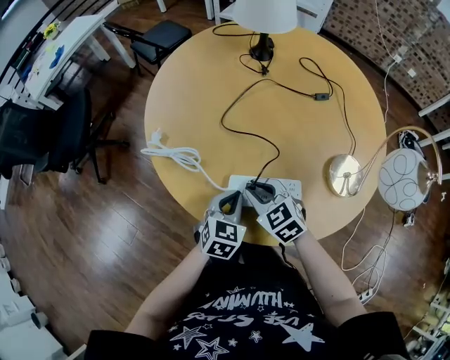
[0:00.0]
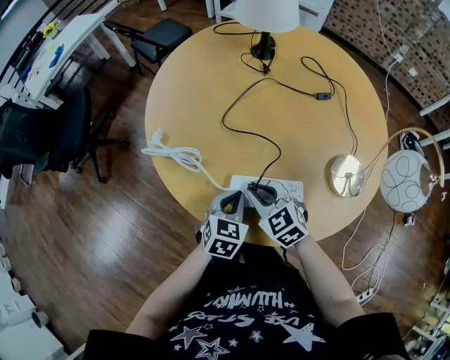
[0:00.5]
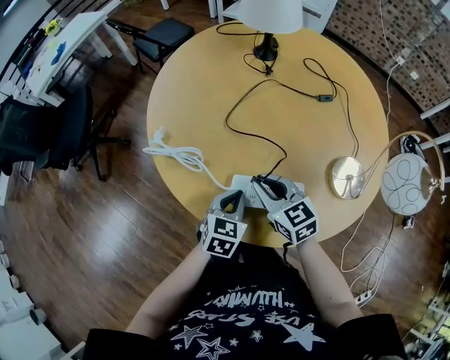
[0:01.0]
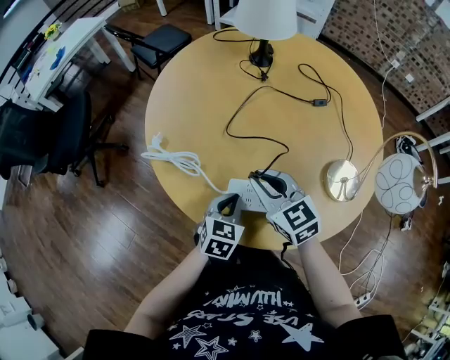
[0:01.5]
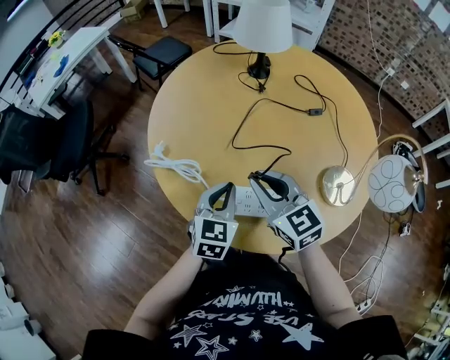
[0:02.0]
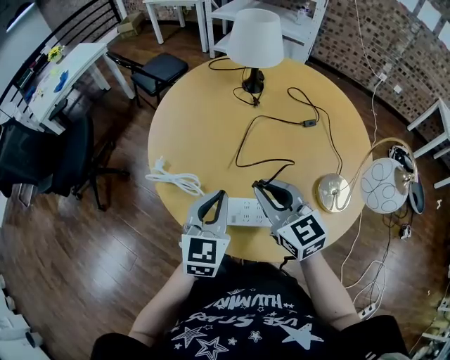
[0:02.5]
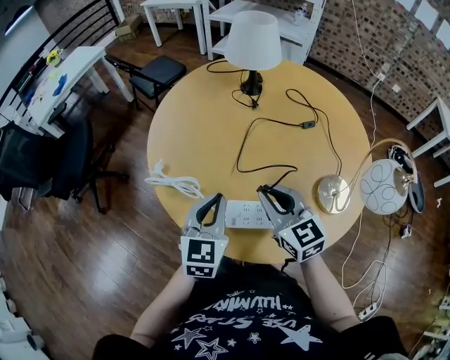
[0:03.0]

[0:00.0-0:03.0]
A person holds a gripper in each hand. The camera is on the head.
0:00.0 to 0:01.5: The right gripper goes some 5 cm upward.
0:01.5 to 0:03.0: The right gripper moves upward, about 5 cm. The left gripper moves upward, roughly 15 cm, and changes its angle by some 20 degrees.

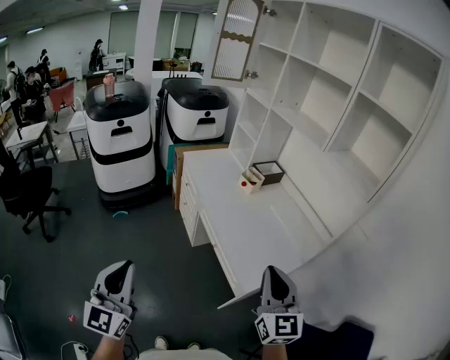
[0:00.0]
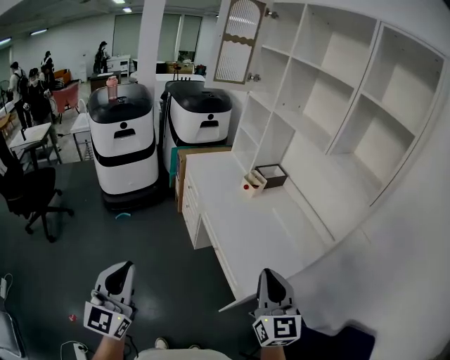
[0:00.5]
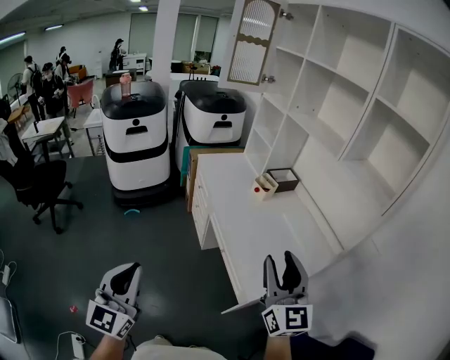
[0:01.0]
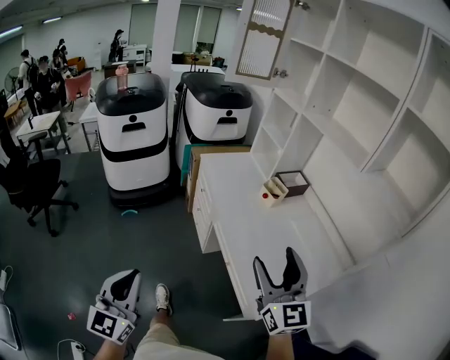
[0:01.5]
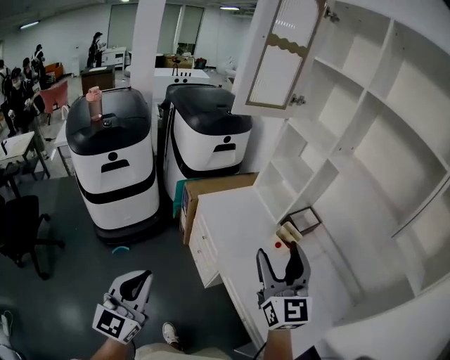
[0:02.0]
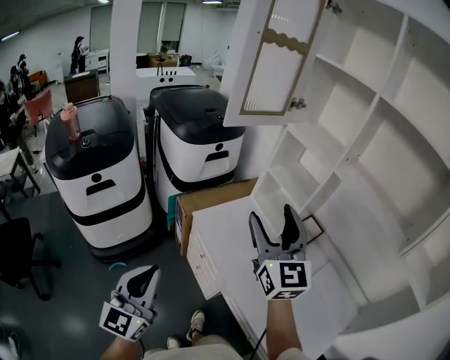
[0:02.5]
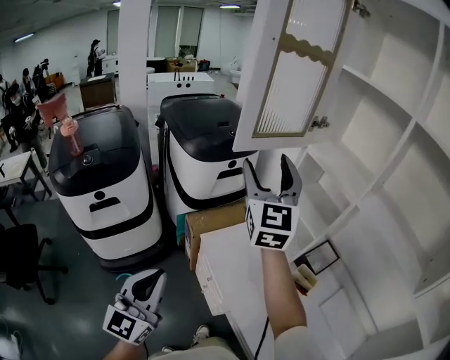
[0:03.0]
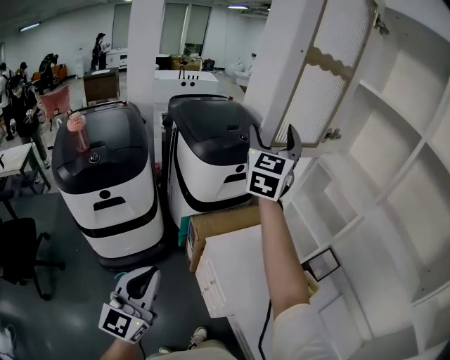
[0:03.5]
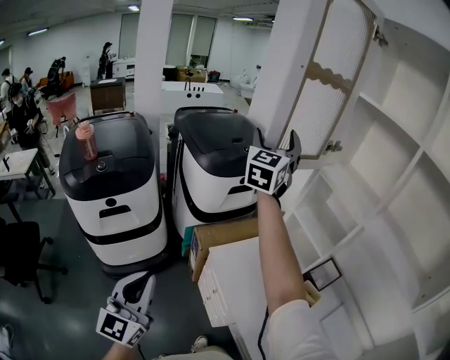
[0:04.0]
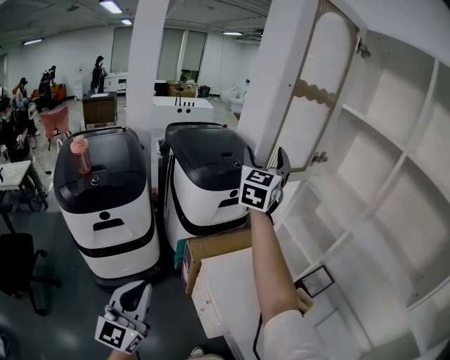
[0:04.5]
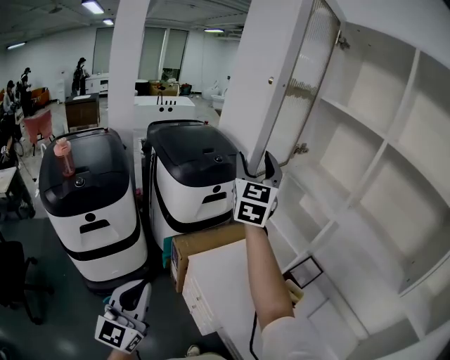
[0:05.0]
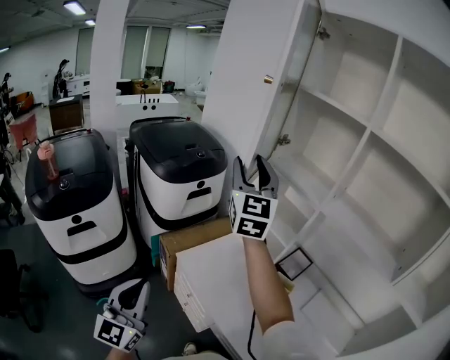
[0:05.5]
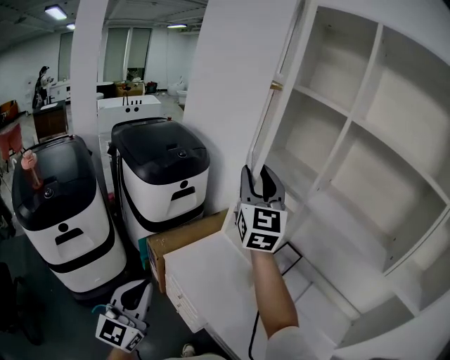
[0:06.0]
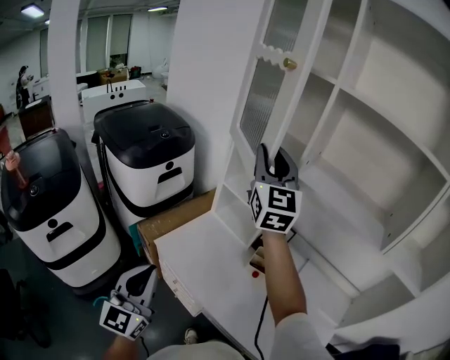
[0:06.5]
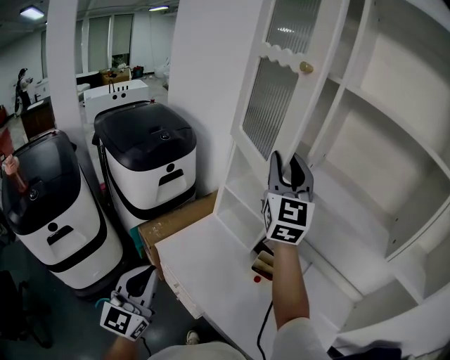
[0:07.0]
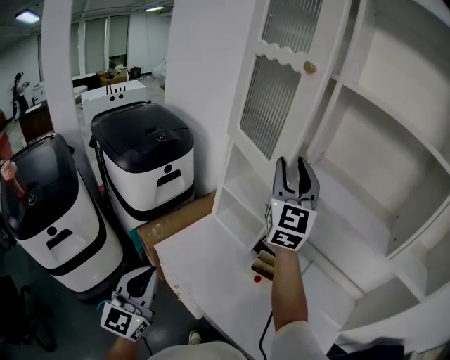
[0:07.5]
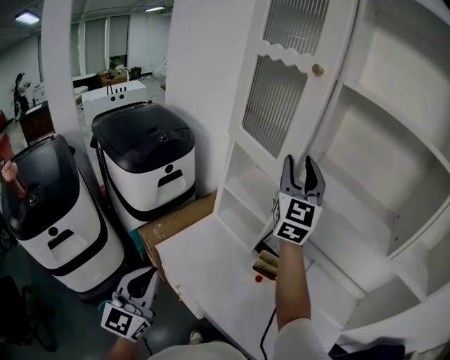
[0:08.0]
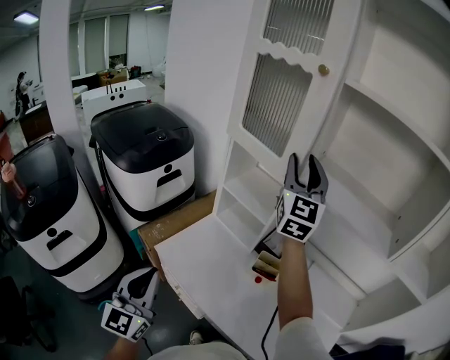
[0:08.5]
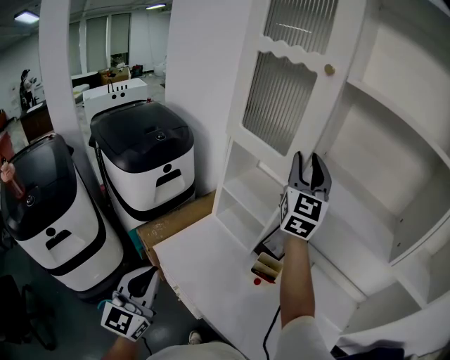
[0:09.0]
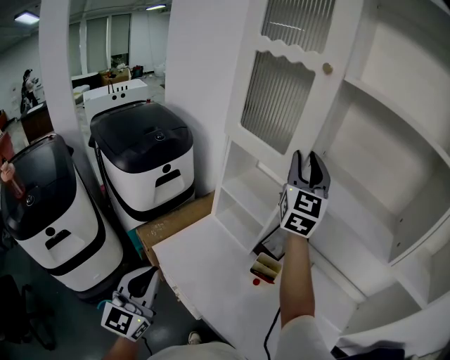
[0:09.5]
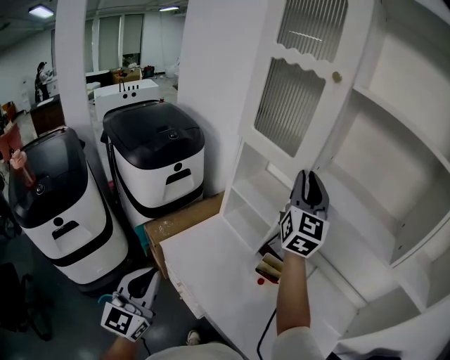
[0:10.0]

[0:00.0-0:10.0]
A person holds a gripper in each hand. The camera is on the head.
0:00.0 to 0:02.0: The two grippers travel together, forward, some 50 cm. The right gripper opens.
0:02.0 to 0:04.0: The left gripper goes about 25 cm forward. The right gripper is displaced forward by some 50 cm, and changes its angle by about 20 degrees.
0:04.0 to 0:06.0: The left gripper is displaced to the right by roughly 10 cm; the right gripper shifts about 20 cm to the right and backward, and closes.
0:06.0 to 0:08.0: The left gripper heads forward and to the right, covering some 10 cm. The right gripper heads to the right, covering roughly 20 cm, and changes its angle by approximately 20 degrees.
0:08.0 to 0:10.0: The grippers stay close to where they were, moving slightly.

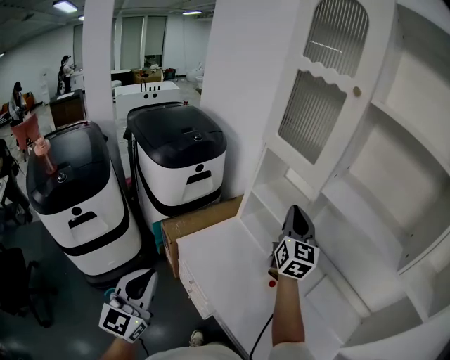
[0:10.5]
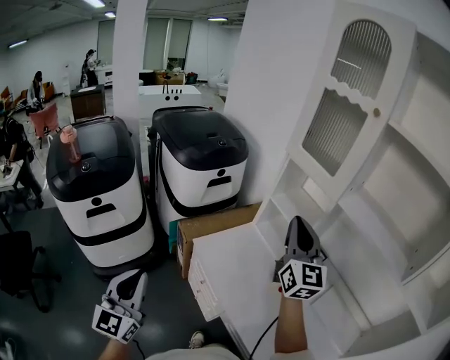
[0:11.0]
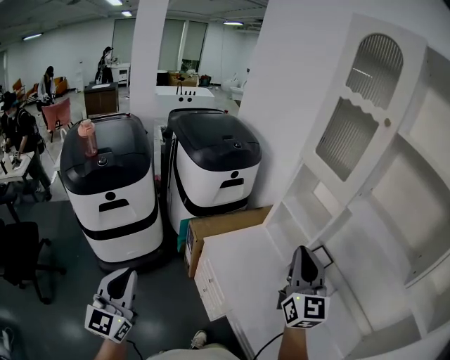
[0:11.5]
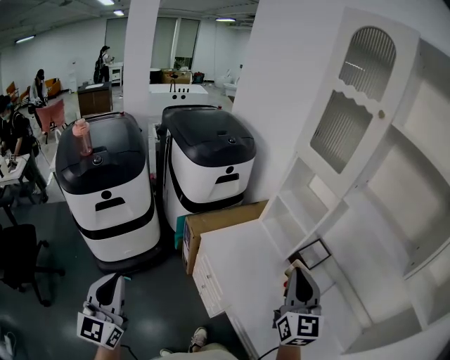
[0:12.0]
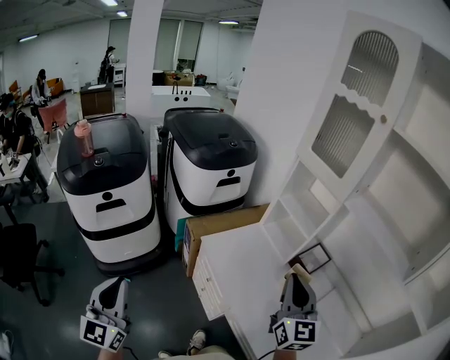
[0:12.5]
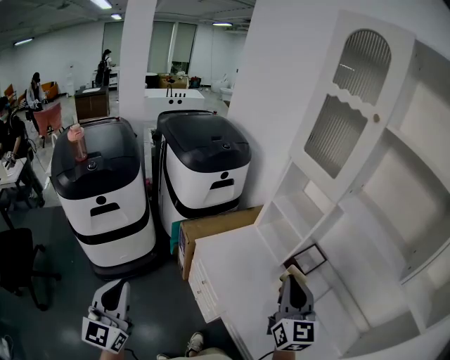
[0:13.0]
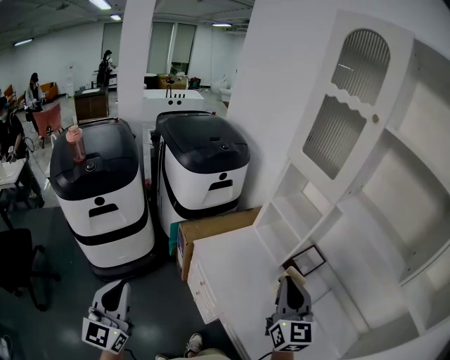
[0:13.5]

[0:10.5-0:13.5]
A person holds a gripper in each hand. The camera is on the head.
0:10.5 to 0:12.0: The right gripper travels backward and to the left by about 20 cm. The left gripper is displaced to the left and backward by about 20 cm.
0:12.0 to 0:13.5: There are only small adjustments of the grippers.

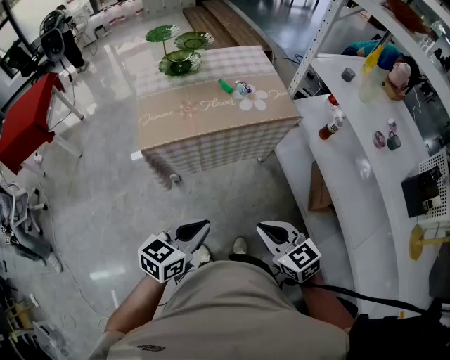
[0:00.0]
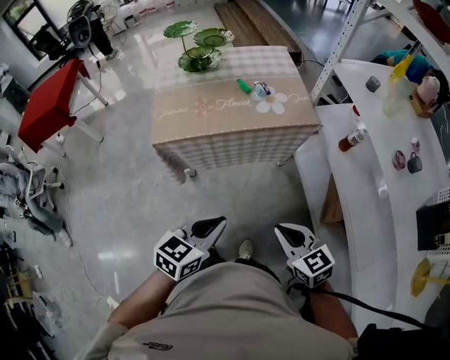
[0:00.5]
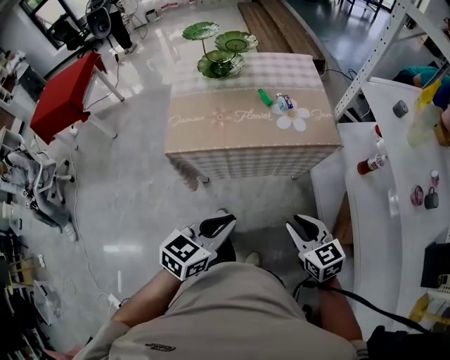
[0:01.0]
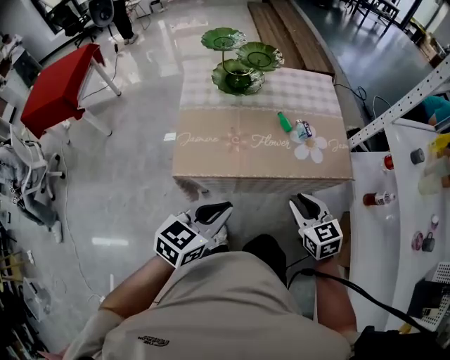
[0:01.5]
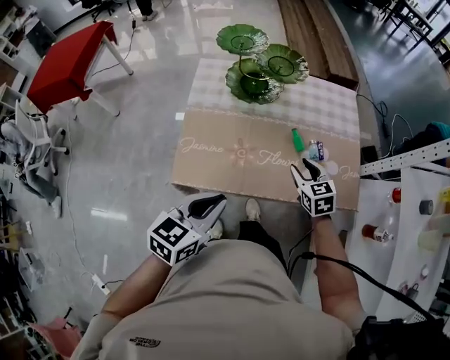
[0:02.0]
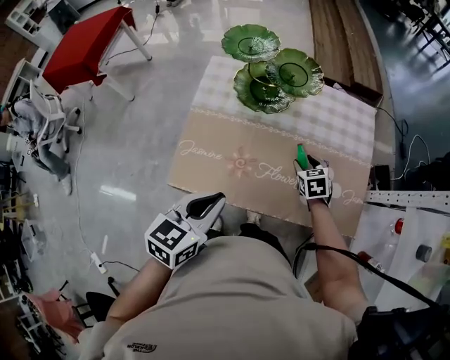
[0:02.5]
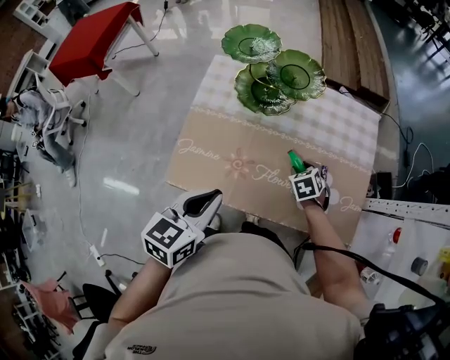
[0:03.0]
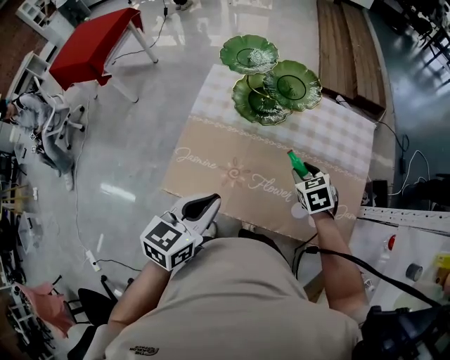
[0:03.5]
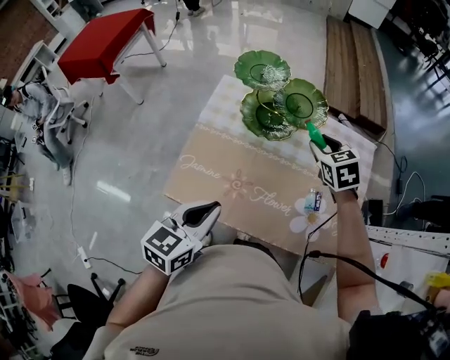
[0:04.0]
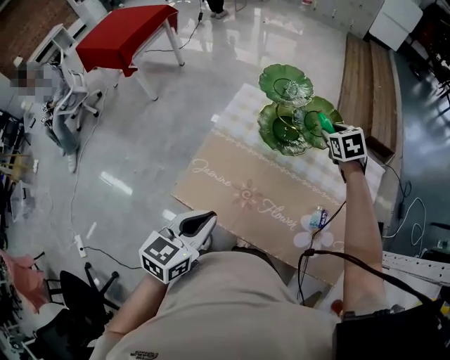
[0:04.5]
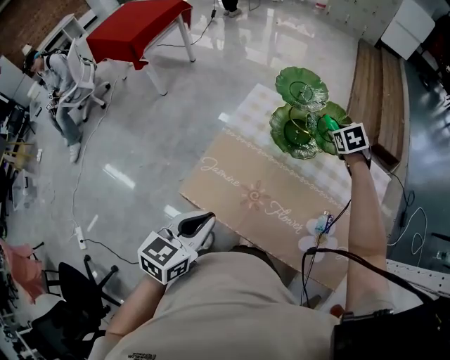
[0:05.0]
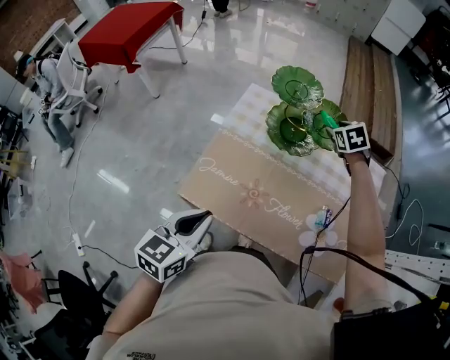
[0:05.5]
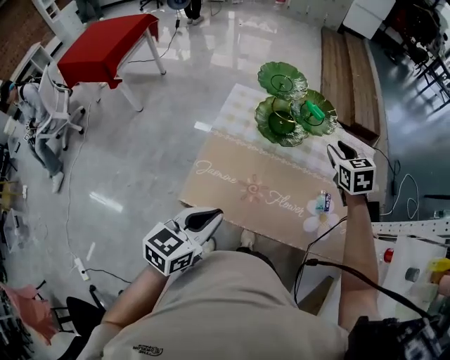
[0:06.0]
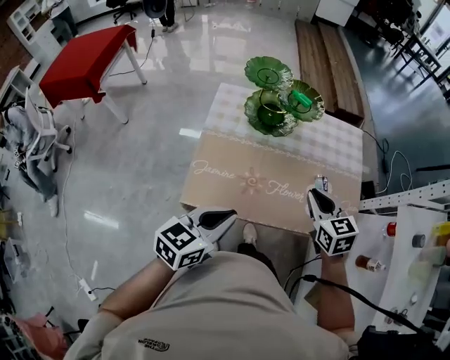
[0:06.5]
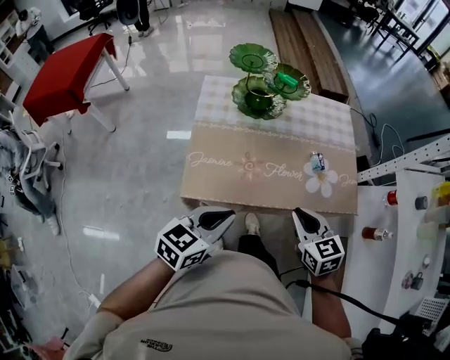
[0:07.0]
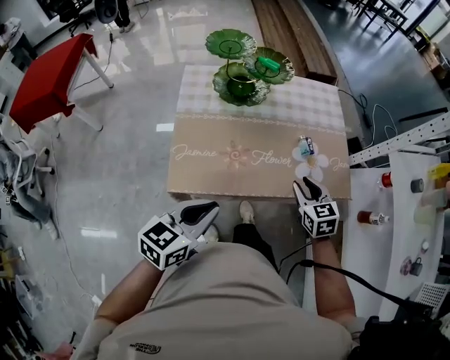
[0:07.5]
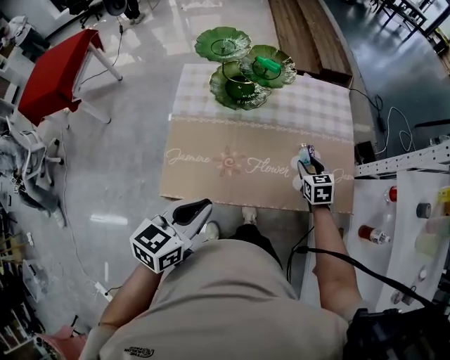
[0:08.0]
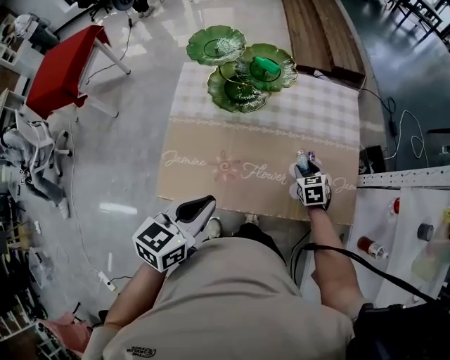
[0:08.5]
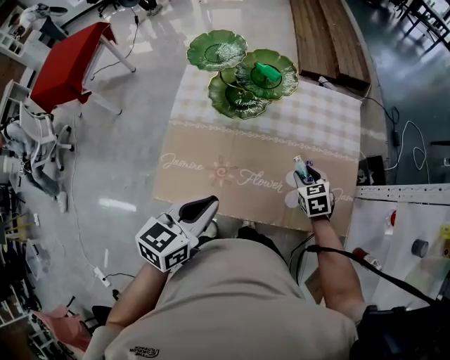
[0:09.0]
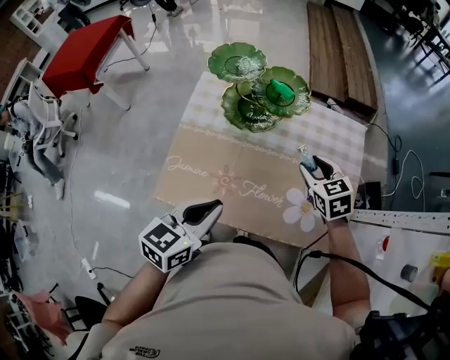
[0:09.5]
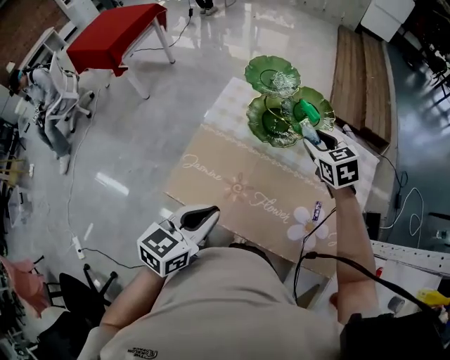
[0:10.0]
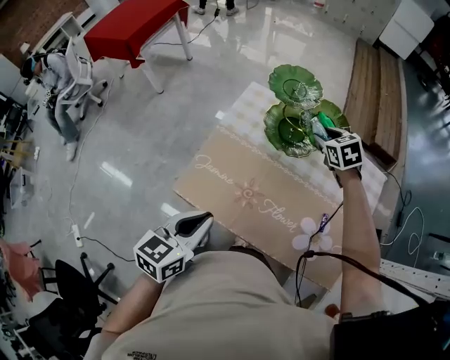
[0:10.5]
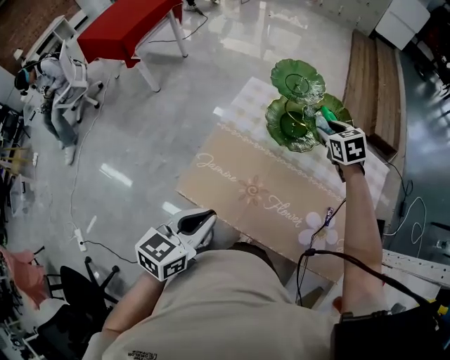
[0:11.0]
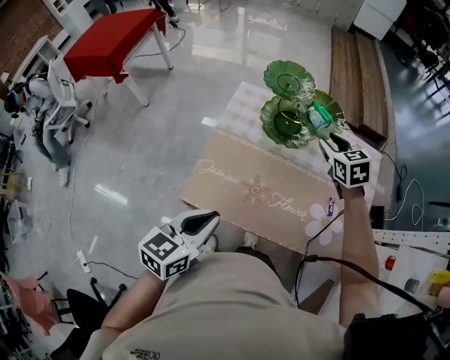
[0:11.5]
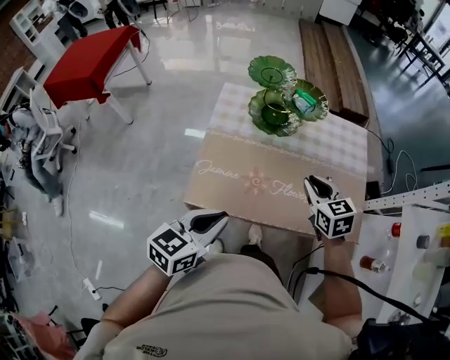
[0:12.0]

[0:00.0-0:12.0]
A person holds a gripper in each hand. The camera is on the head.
0:00.0 to 0:02.0: The right gripper moves forward, approximately 60 cm, and opens up. The left gripper is displaced forward by some 35 cm.
0:02.0 to 0:04.0: The right gripper is displaced forward and upward by some 25 cm; the left gripper shifts some 10 cm forward.
0:04.0 to 0:06.0: The left gripper goes approximately 5 cm to the left, while the right gripper moves about 15 cm forward and comes back.
0:06.0 to 0:08.0: The right gripper travels downward, backward and to the right by about 25 cm, and closes, then opens again.
0:08.0 to 0:10.0: The right gripper moves some 30 cm, and rotates about 40 degrees.
0:10.0 to 0:12.0: The left gripper is displaced to the left and backward by roughly 10 cm; the right gripper heads backward, covering approximately 20 cm, rotates roughly 20 degrees, and closes.
